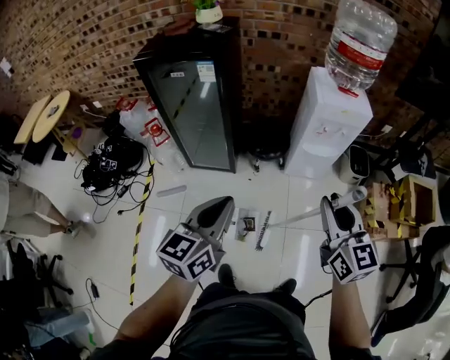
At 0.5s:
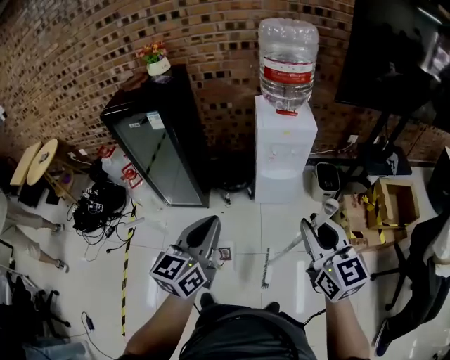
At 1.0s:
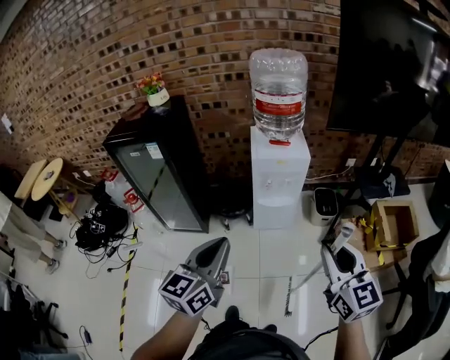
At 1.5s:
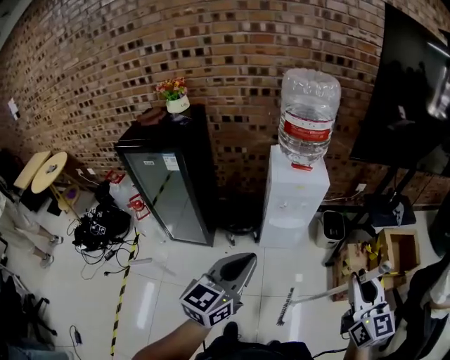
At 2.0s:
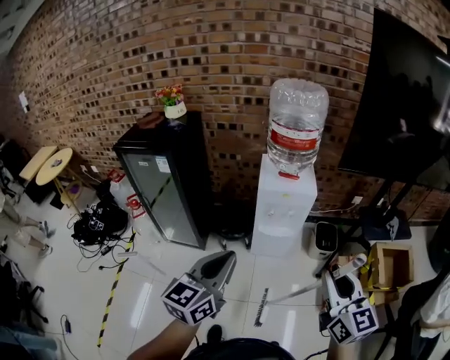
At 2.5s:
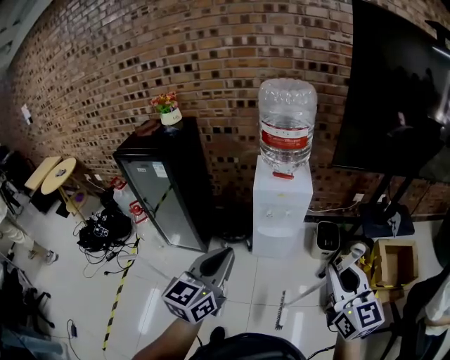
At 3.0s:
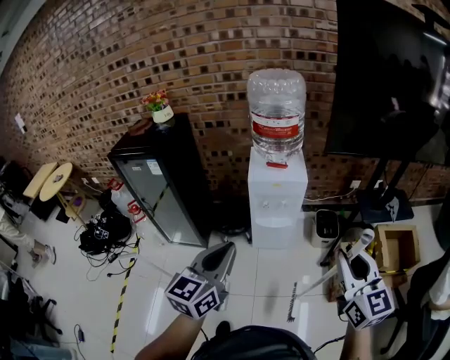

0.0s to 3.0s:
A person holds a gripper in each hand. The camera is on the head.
0.0s to 1.5s: The right gripper heads to the right, covering about 35 cm; the left gripper travels to the right and upward by some 30 cm.
1.5s to 3.0s: Both grippers travel together to the right, about 15 cm.

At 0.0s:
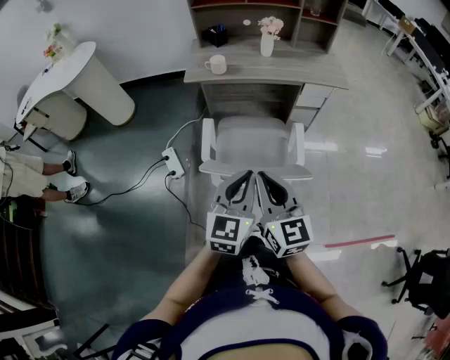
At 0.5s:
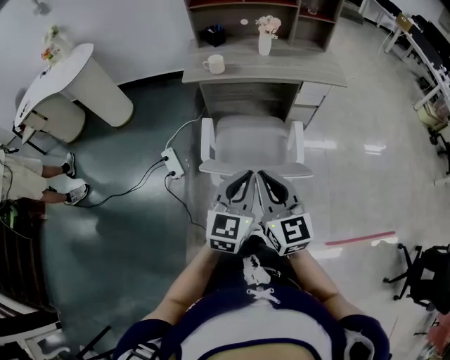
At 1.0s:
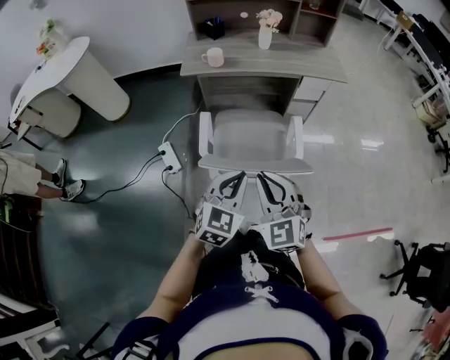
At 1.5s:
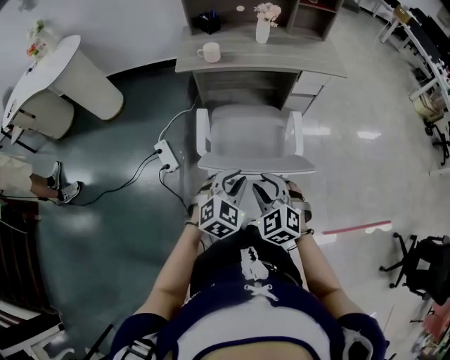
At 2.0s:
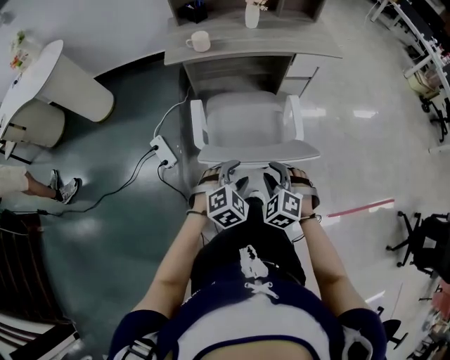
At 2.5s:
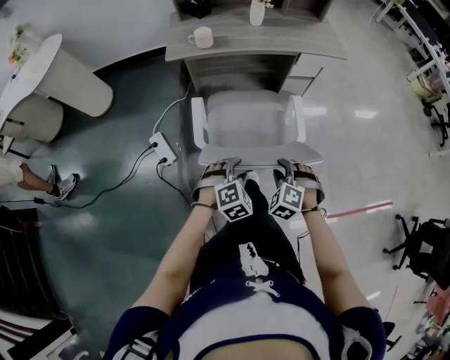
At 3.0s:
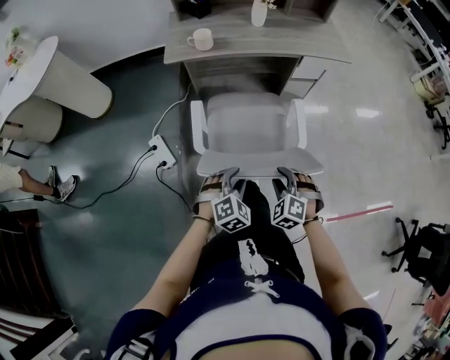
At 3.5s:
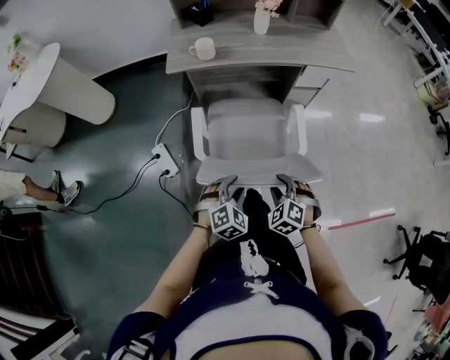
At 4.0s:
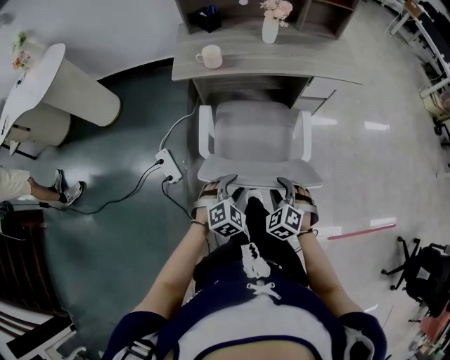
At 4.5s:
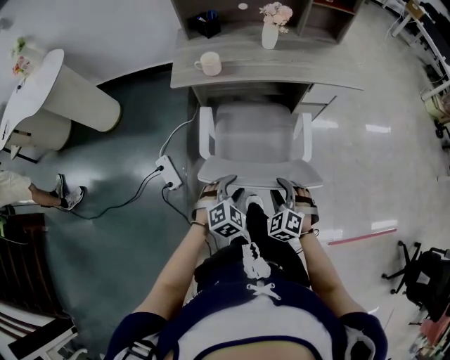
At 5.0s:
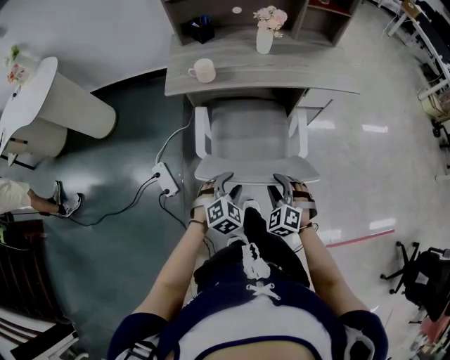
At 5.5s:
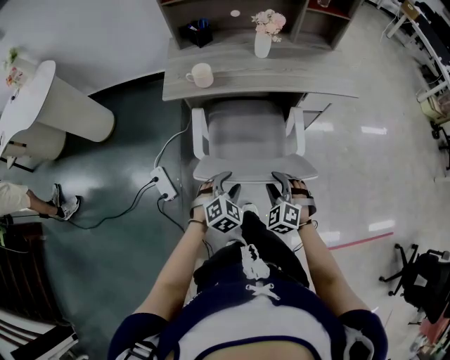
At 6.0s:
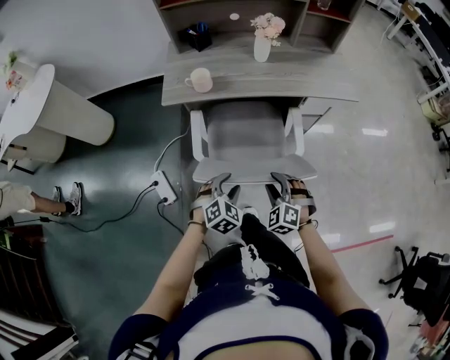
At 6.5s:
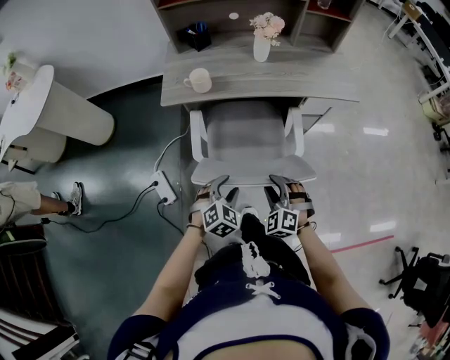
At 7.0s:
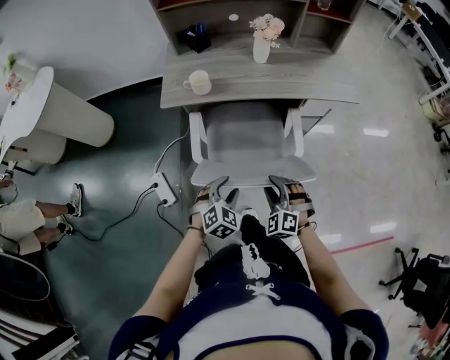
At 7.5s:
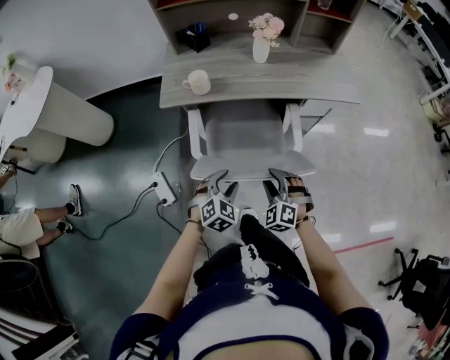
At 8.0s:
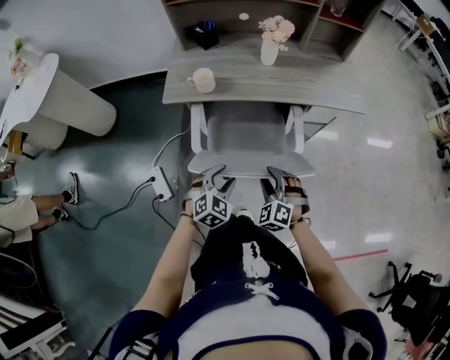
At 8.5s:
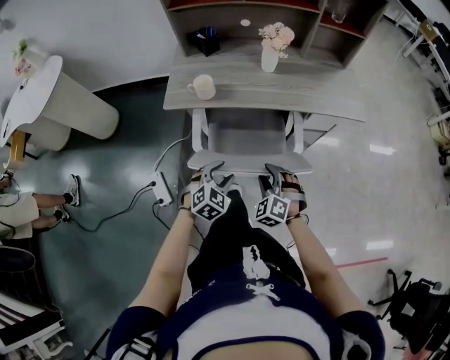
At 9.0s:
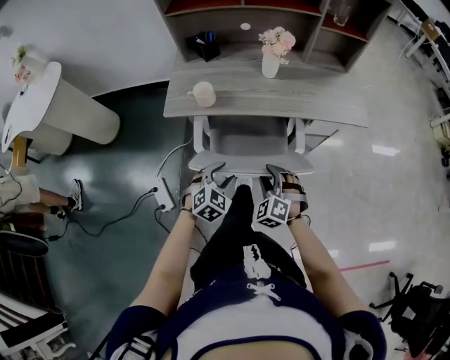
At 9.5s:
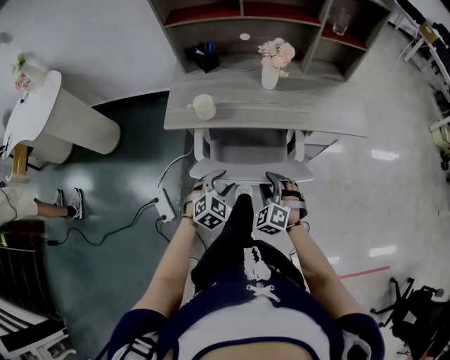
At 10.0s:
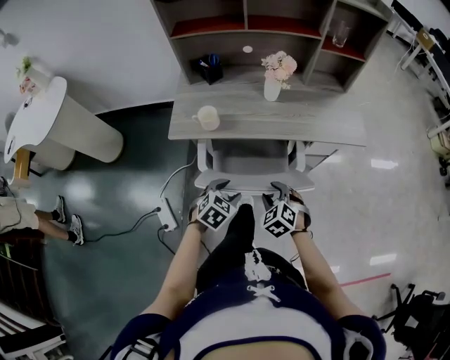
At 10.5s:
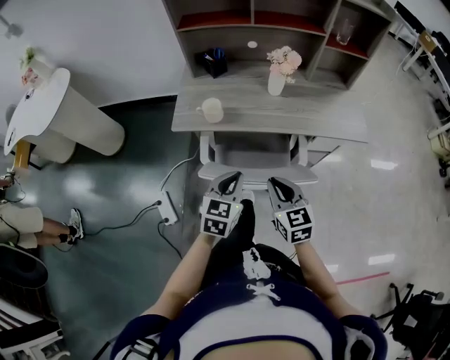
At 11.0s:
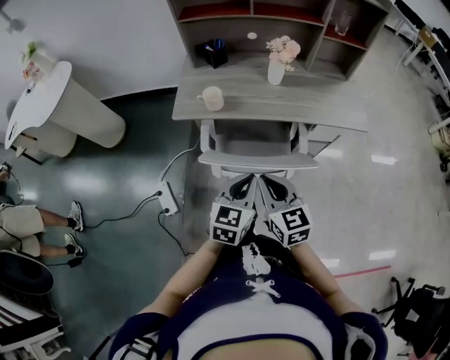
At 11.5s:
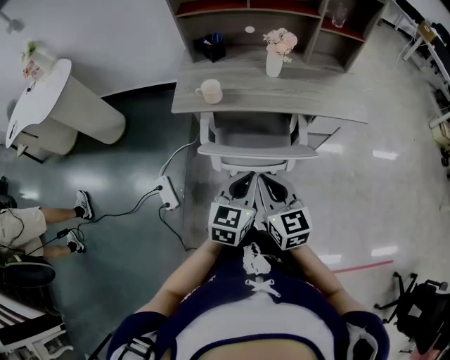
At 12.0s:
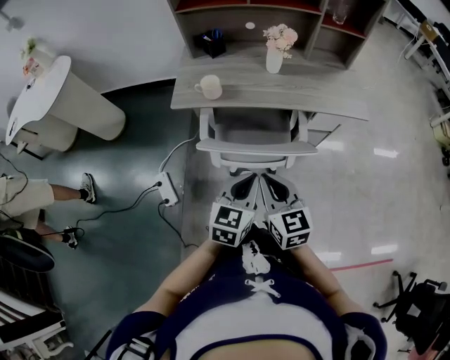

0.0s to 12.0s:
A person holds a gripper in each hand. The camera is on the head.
0.0s to 2.0s: The two grippers go some 20 cm downward. The left gripper tilts its fingers some 40 degrees downward, and opens up; the right gripper tilts its fingers about 40 degrees downward, and opens.
2.0s to 4.0s: The grippers both shift forward and downward by some 10 cm.
4.0s to 6.0s: The two grippers go about 15 cm forward.
6.0s to 8.0s: Both grippers move forward, some 5 cm.
8.0s to 10.0s: The two grippers go about 10 cm forward.
10.0s to 12.0s: The left gripper moves upward, backward and to the right, roughly 15 cm, rotates about 40 degrees, and closes; the right gripper moves upward and backward, some 15 cm, points its fingers approximately 30 degrees further upward, and closes up.

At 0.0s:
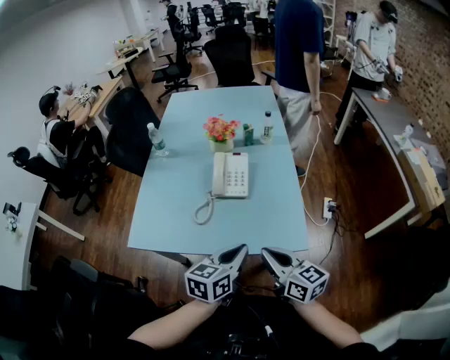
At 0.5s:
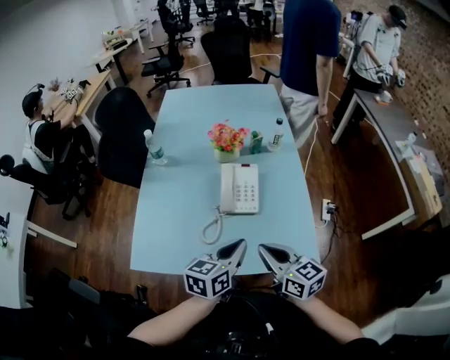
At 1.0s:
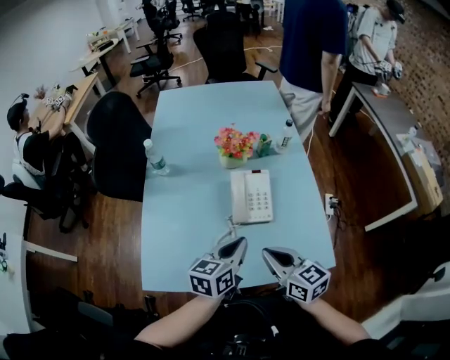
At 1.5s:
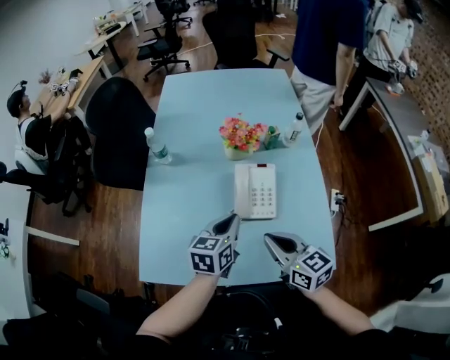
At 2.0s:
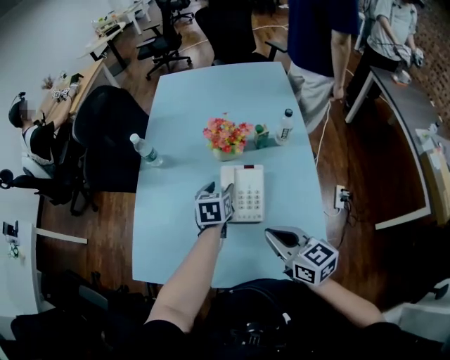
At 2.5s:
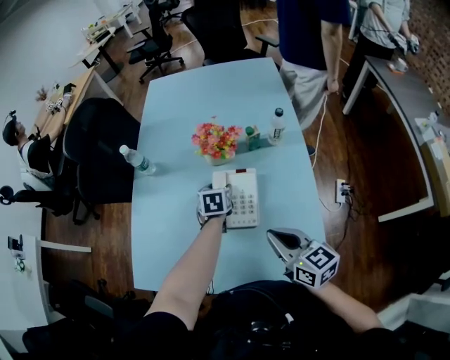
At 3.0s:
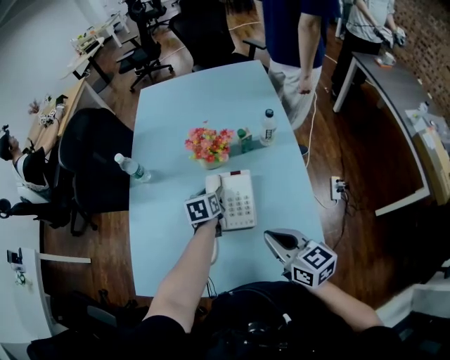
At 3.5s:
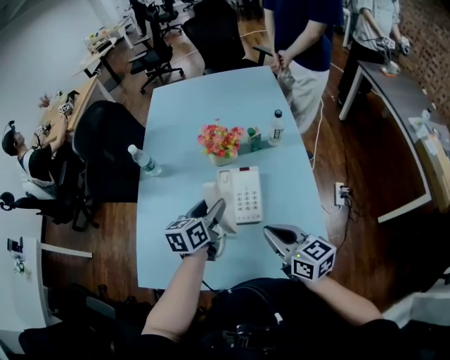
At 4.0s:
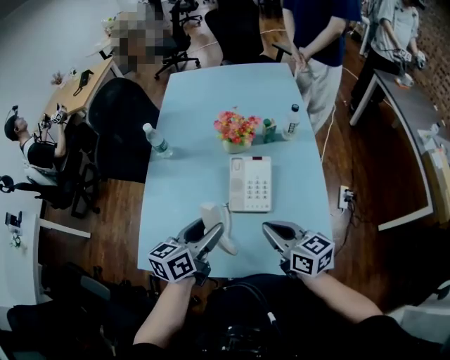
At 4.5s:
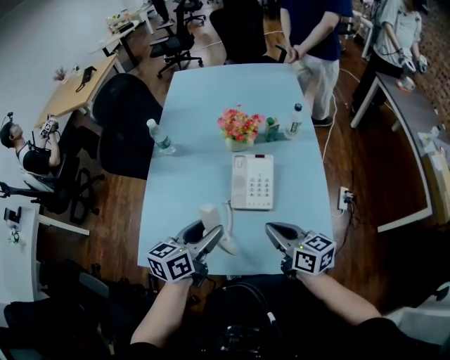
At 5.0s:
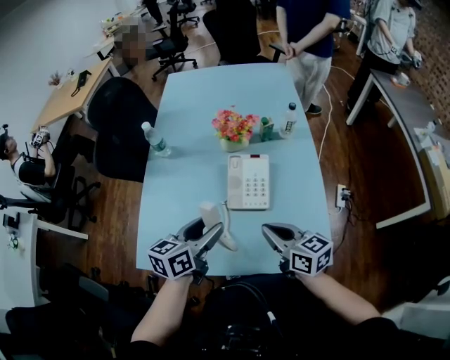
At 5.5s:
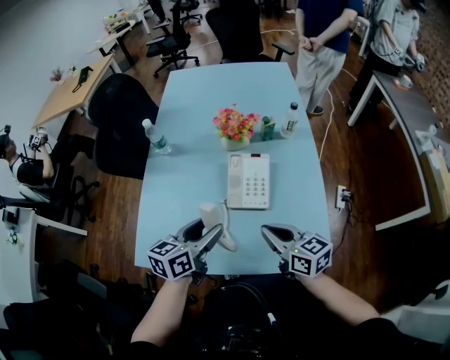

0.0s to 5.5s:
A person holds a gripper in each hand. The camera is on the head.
0.0s to 2.0s: The left gripper heads forward, covering approximately 40 cm, swivels approximately 30 degrees, and opens up, while the right gripper is displaced forward by approximately 25 cm.
2.0s to 3.5s: The left gripper goes some 10 cm upward and backward, and swivels roughly 20 degrees.
3.5s to 5.5s: The right gripper shifts by about 5 cm. Meanwhile the left gripper shifts about 15 cm backward.

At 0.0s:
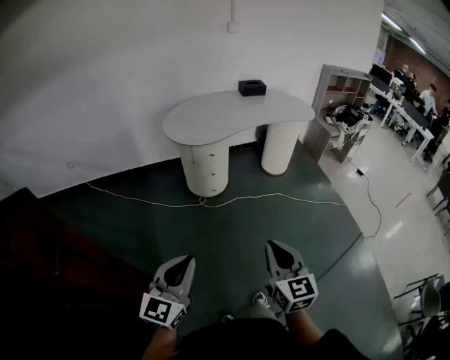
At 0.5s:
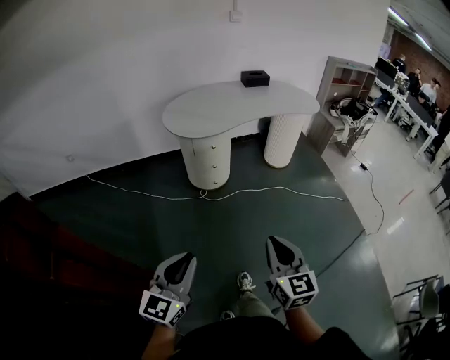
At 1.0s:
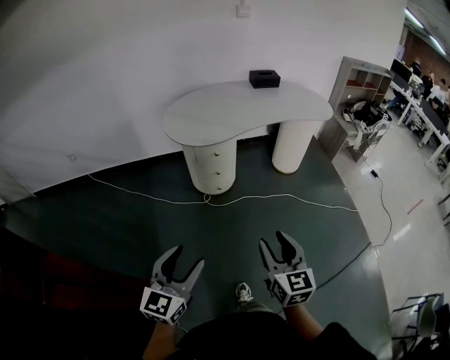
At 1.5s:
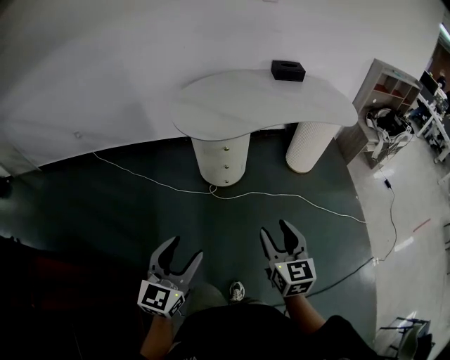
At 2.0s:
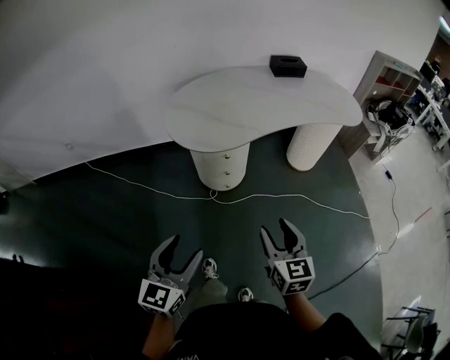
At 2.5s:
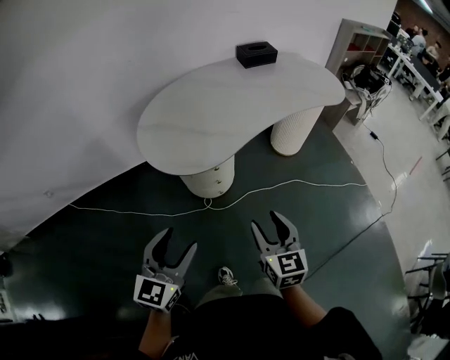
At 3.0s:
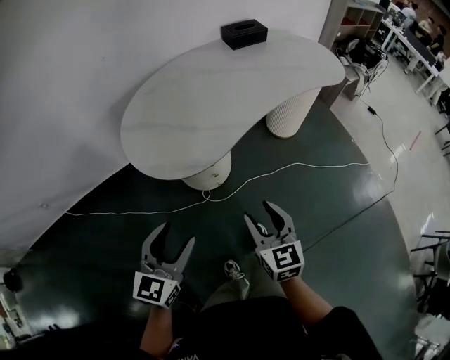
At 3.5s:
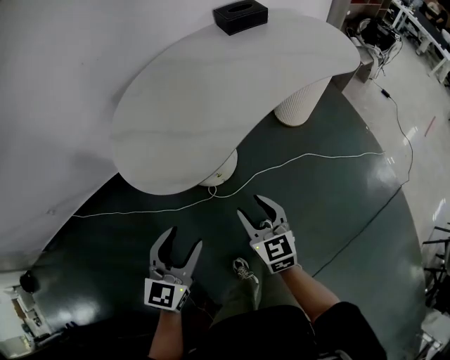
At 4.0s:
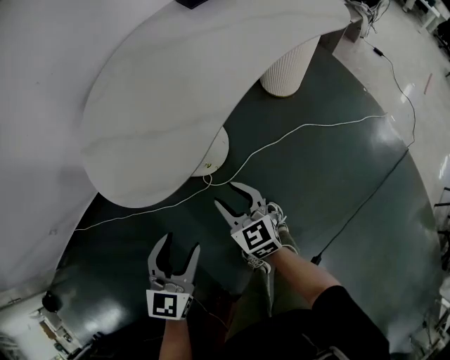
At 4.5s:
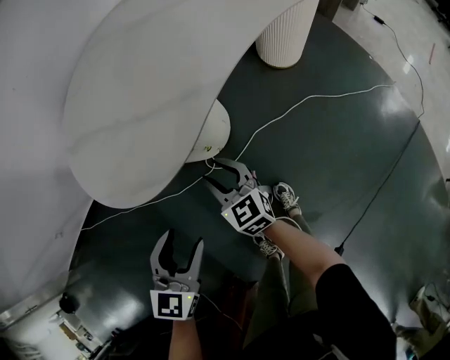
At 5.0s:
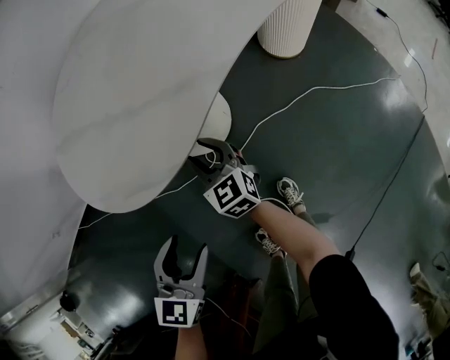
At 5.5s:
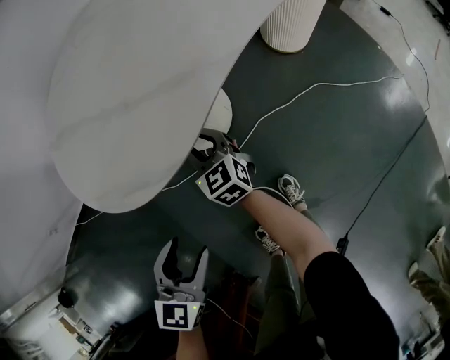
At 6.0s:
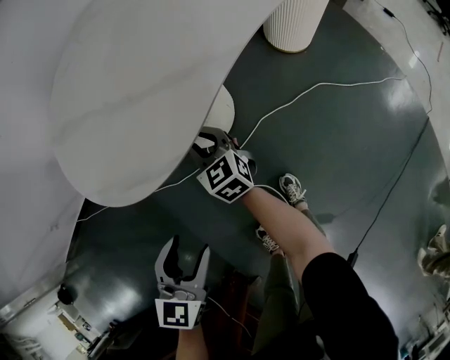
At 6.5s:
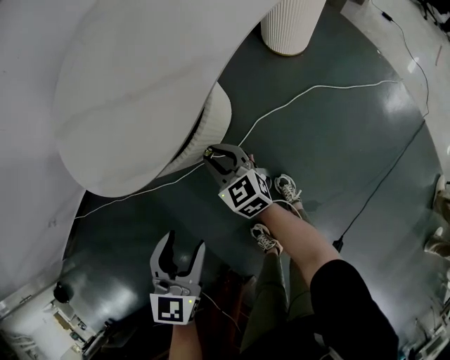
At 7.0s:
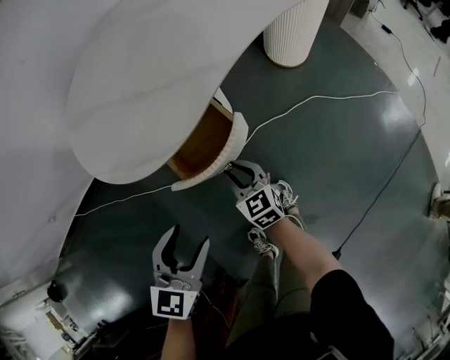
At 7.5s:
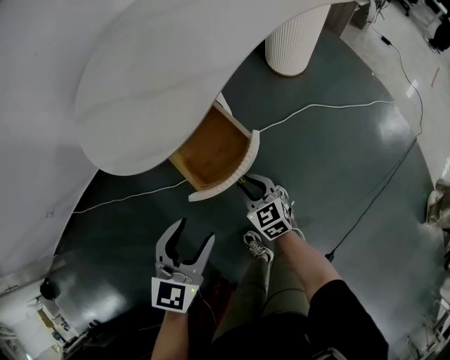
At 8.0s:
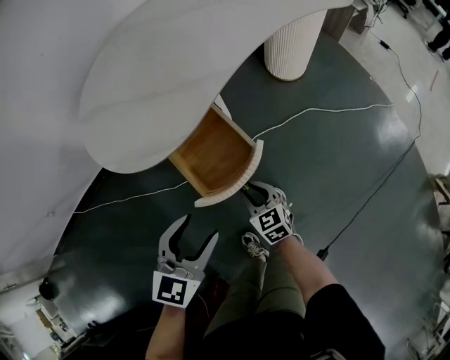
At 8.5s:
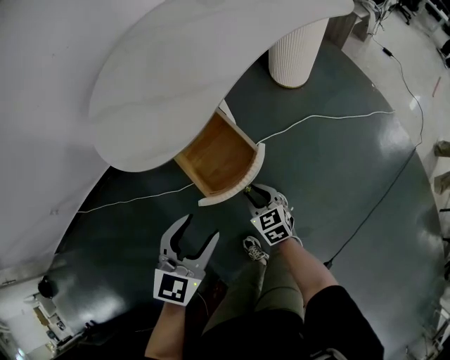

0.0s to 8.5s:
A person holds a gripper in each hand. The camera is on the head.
0.0s to 2.0s: The grippers both shift forward by approximately 35 cm. The left gripper opens. Meanwhile the right gripper opens up.
2.0s to 4.0s: The right gripper shifts approximately 35 cm forward, downward and to the left. Meanwhile the left gripper moves forward and downward, some 35 cm, and swivels about 30 degrees.
4.0s to 6.5s: Both grippers travel together downward, some 10 cm. The right gripper closes.
6.5s to 8.5s: The right gripper shifts approximately 15 cm backward and to the right, while the left gripper heads upward and to the right, covering approximately 10 cm.
